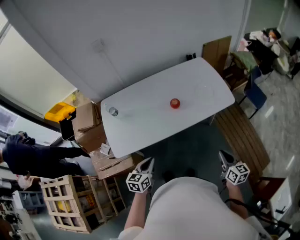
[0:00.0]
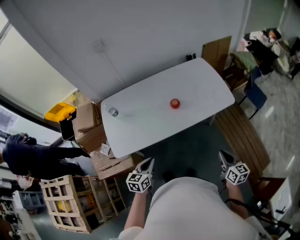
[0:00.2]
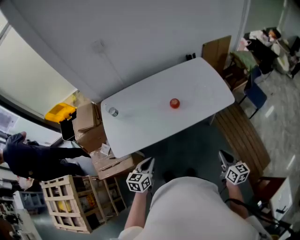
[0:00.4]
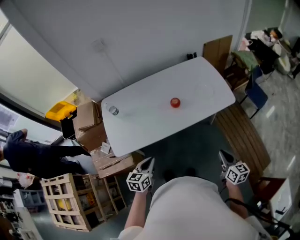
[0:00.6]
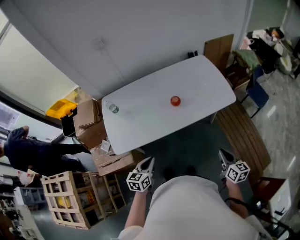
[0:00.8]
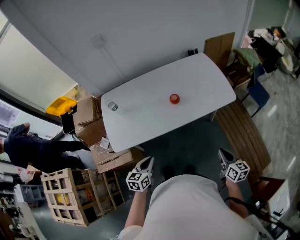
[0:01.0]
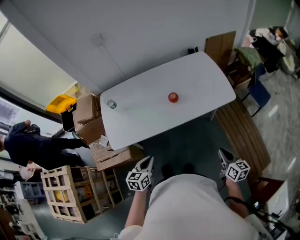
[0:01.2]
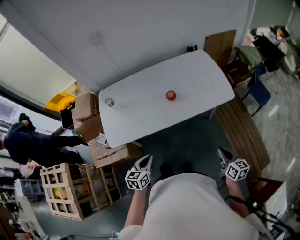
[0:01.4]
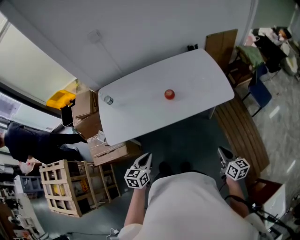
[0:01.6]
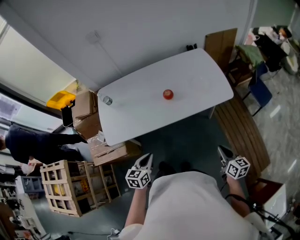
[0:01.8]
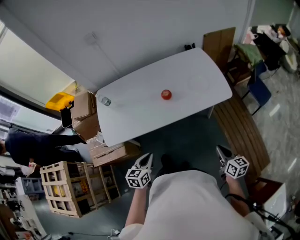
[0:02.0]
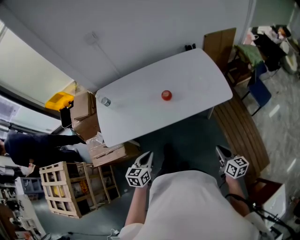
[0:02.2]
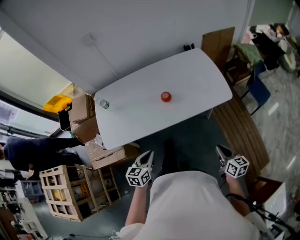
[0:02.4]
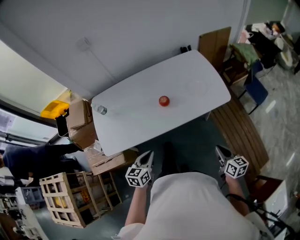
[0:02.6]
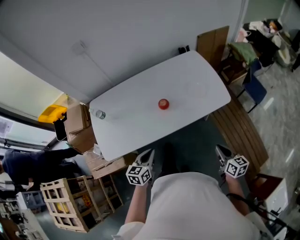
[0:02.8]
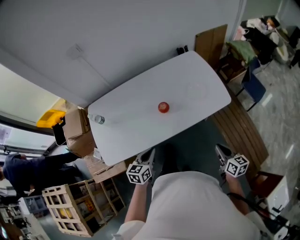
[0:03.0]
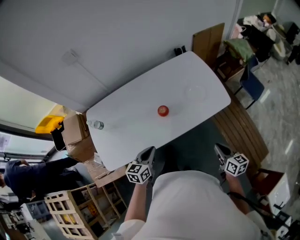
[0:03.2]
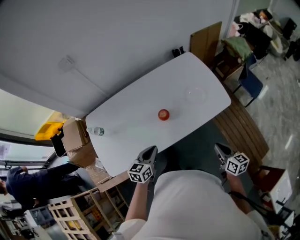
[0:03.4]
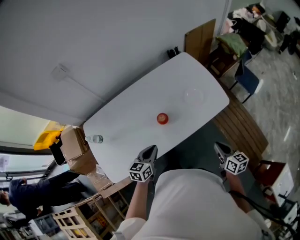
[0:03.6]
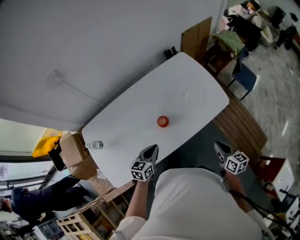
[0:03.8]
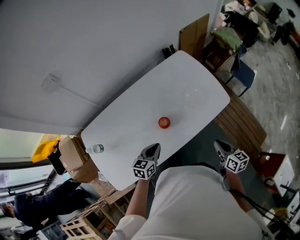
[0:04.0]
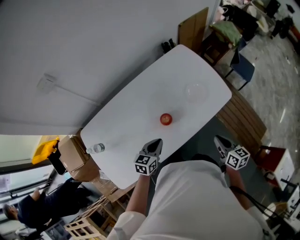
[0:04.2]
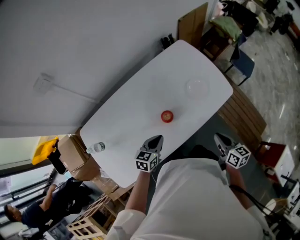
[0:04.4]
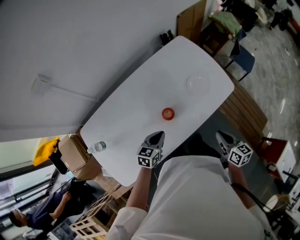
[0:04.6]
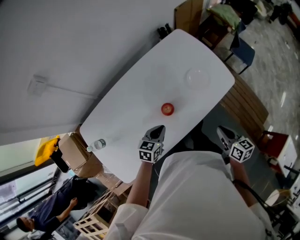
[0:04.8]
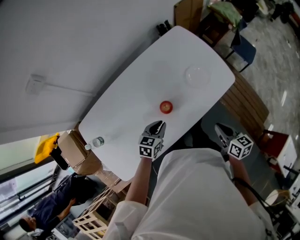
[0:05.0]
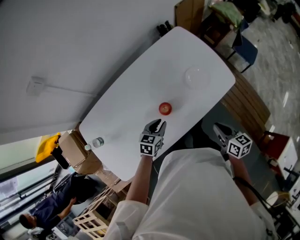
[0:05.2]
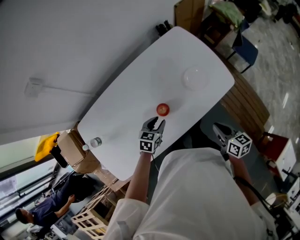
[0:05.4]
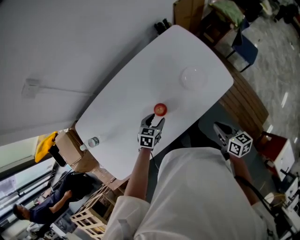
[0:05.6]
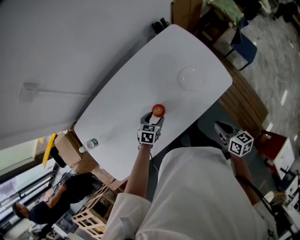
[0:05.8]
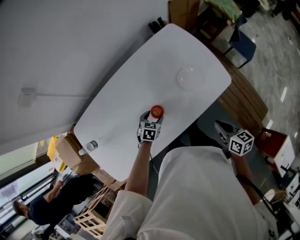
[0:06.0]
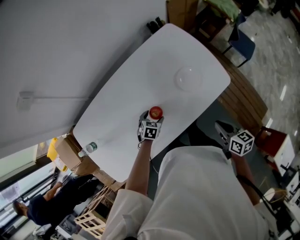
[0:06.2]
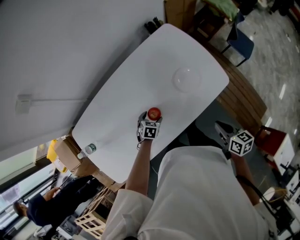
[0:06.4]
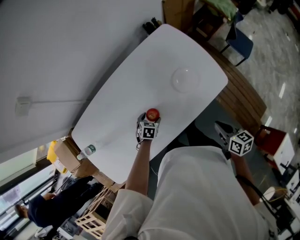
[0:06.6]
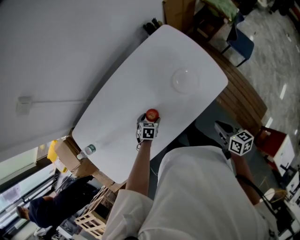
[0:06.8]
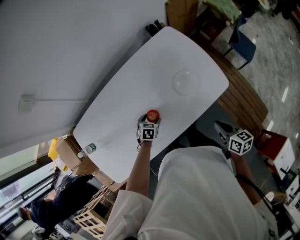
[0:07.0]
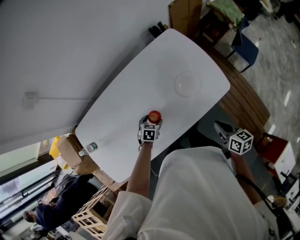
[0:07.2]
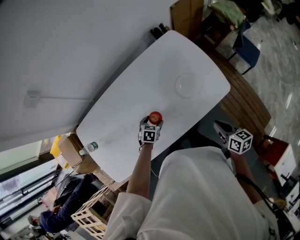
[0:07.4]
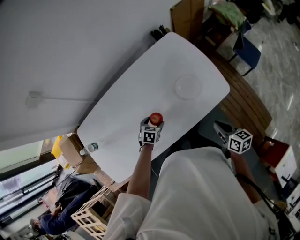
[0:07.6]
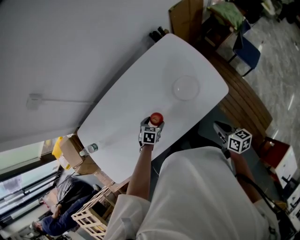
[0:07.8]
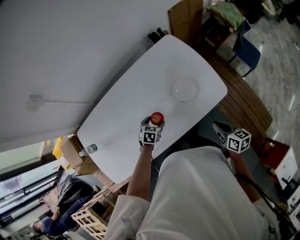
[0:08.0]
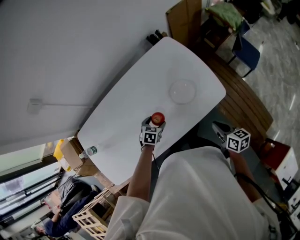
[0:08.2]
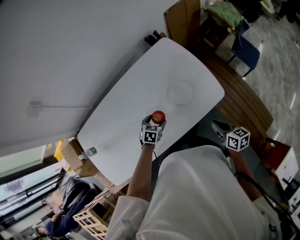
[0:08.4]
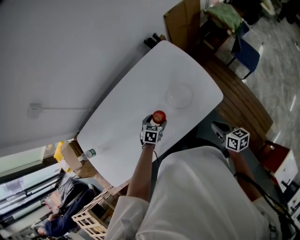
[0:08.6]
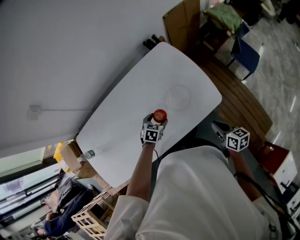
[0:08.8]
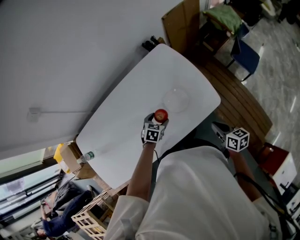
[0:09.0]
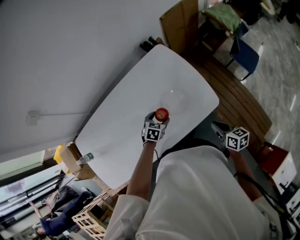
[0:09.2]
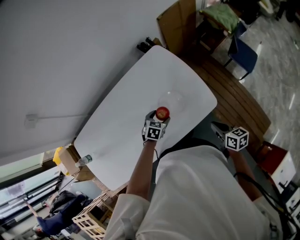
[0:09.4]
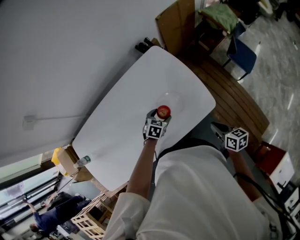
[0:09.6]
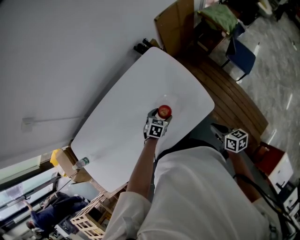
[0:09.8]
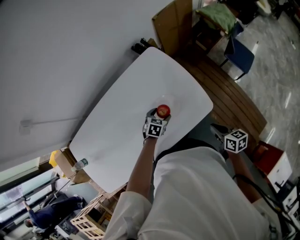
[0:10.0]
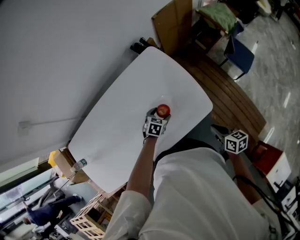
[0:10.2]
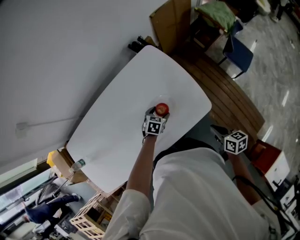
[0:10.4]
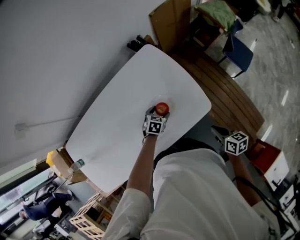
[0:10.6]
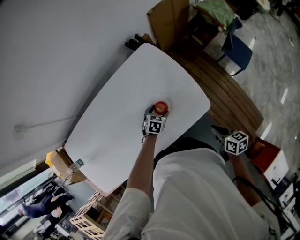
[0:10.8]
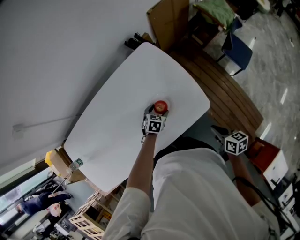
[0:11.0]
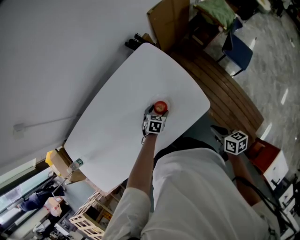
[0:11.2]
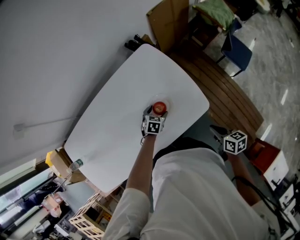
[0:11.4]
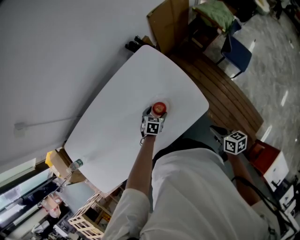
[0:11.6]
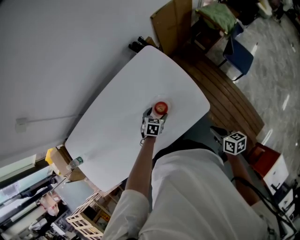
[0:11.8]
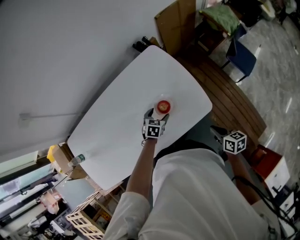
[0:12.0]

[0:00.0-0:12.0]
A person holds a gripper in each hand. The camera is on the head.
0:00.0 to 0:01.6: Both grippers travel together to the right, roughly 5 cm.
0:01.6 to 0:03.0: The left gripper goes approximately 15 cm forward. The right gripper travels forward by approximately 10 cm.
0:03.0 to 0:04.4: The right gripper travels to the left and forward by some 15 cm, while the left gripper is displaced forward by about 15 cm, and changes its angle by some 20 degrees.
0:04.4 to 0:06.0: The left gripper is displaced downward and forward by roughly 15 cm, changes its angle by some 30 degrees, and opens up; the right gripper shifts by some 5 cm.
0:06.0 to 0:07.6: The right gripper moves approximately 5 cm.
0:07.6 to 0:09.0: Both grippers move to the right and forward, roughly 10 cm.
0:09.0 to 0:10.4: The left gripper shifts about 10 cm to the right and forward. Meanwhile the right gripper moves approximately 5 cm.
0:10.4 to 0:12.0: The grippers move only a little.

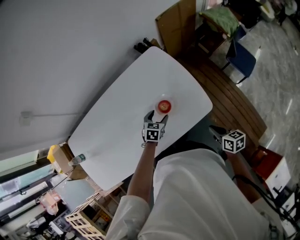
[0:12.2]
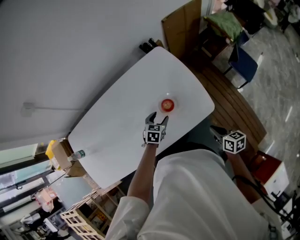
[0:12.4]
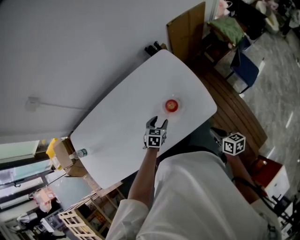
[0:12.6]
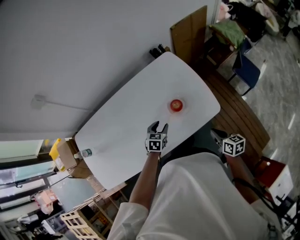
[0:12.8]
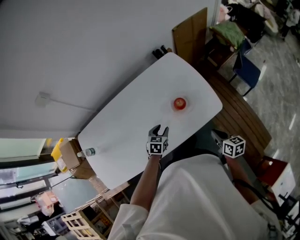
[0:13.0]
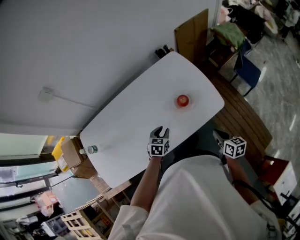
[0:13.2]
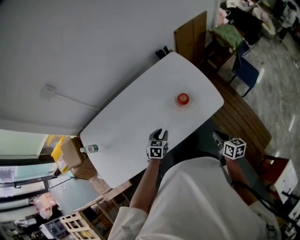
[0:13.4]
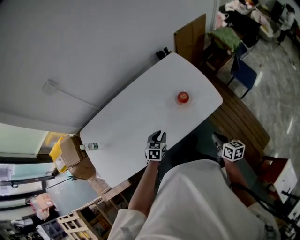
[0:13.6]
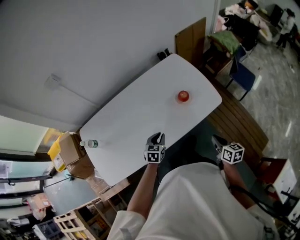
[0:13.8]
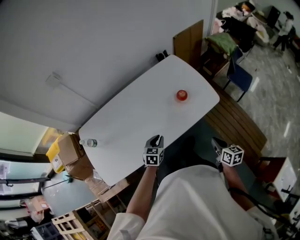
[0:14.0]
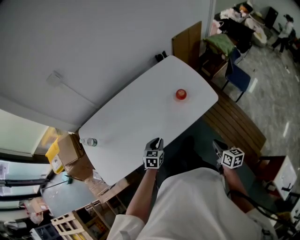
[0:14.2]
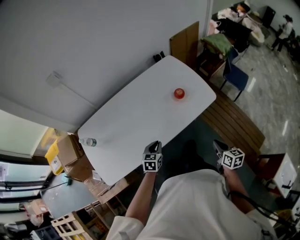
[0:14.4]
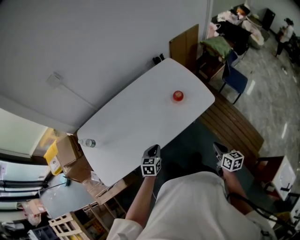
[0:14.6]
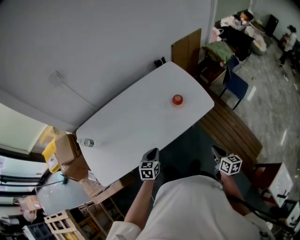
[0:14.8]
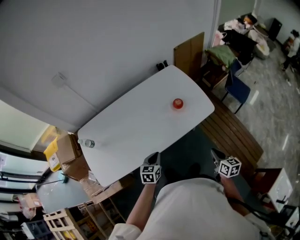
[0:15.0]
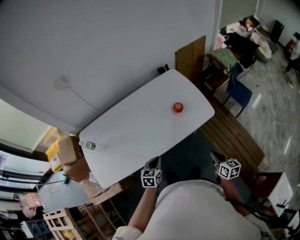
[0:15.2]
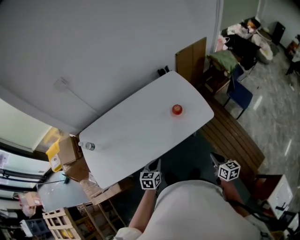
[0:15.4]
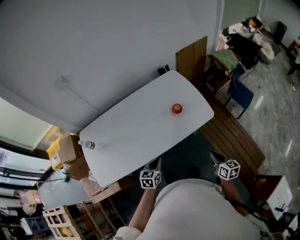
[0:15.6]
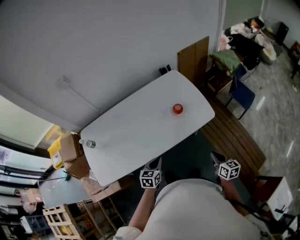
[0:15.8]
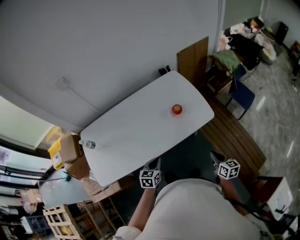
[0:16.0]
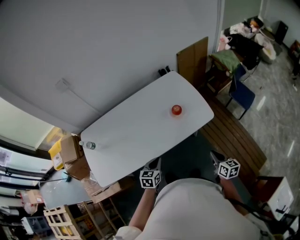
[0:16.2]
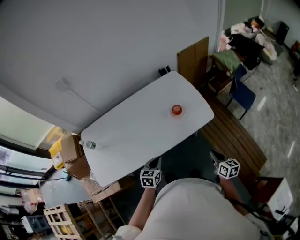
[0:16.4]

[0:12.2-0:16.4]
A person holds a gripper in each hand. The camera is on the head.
0:12.2 to 0:13.6: The two grippers go approximately 20 cm backward and to the left. The left gripper closes its fingers.
0:13.6 to 0:15.0: The grippers both shift backward by approximately 10 cm.
0:15.0 to 0:16.4: There are only small adjustments of the grippers.

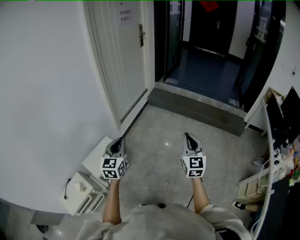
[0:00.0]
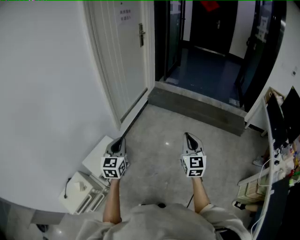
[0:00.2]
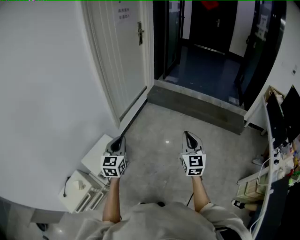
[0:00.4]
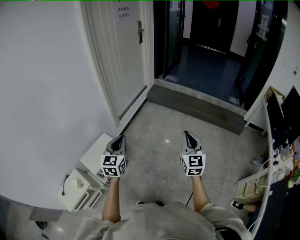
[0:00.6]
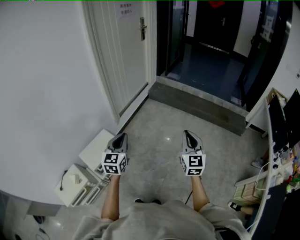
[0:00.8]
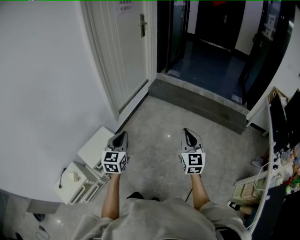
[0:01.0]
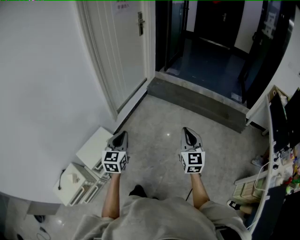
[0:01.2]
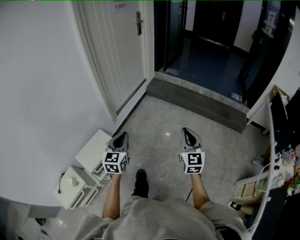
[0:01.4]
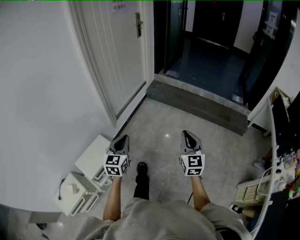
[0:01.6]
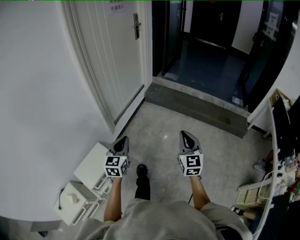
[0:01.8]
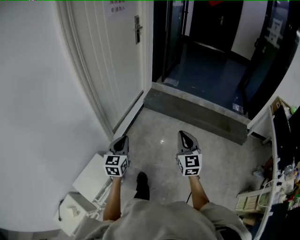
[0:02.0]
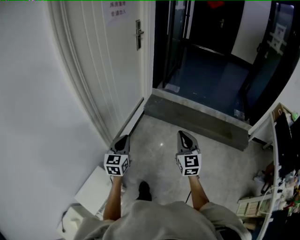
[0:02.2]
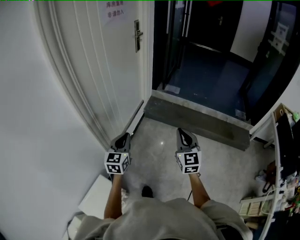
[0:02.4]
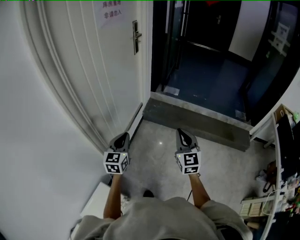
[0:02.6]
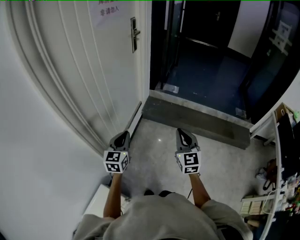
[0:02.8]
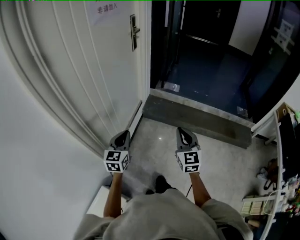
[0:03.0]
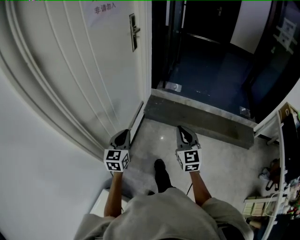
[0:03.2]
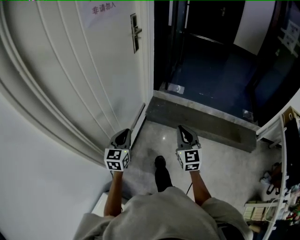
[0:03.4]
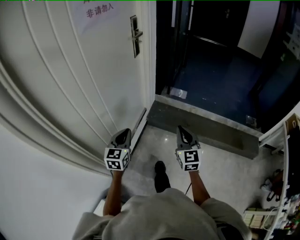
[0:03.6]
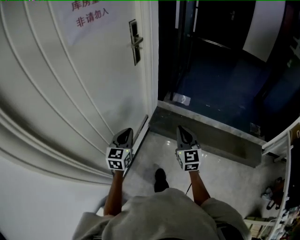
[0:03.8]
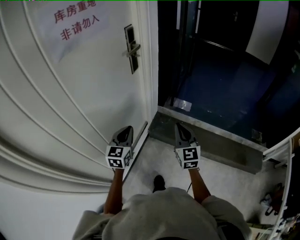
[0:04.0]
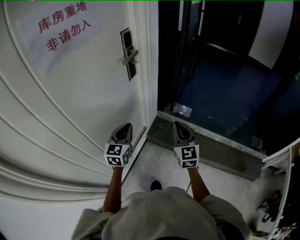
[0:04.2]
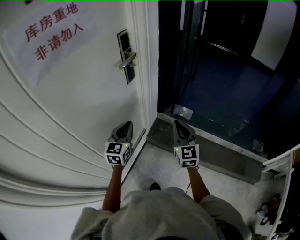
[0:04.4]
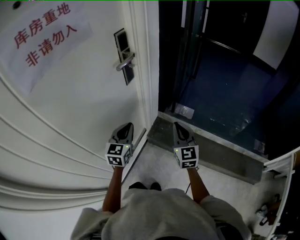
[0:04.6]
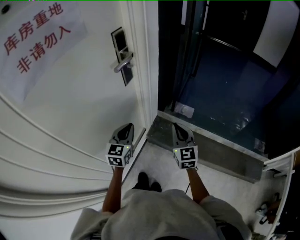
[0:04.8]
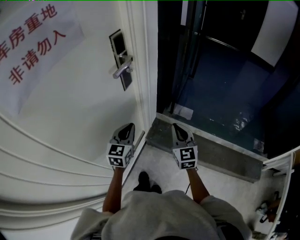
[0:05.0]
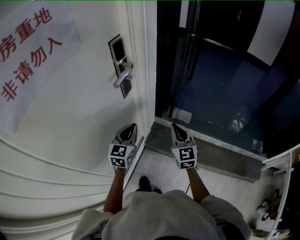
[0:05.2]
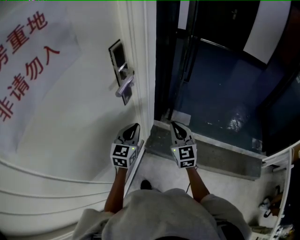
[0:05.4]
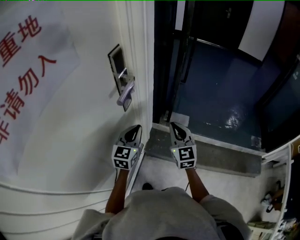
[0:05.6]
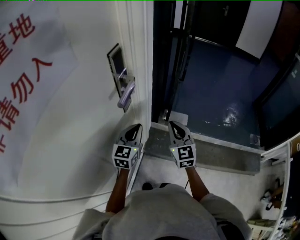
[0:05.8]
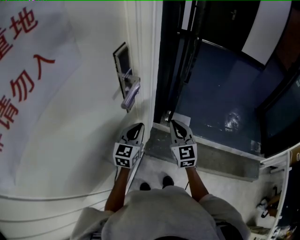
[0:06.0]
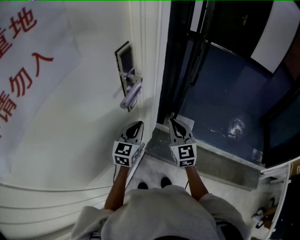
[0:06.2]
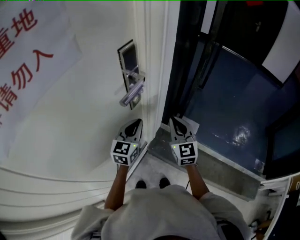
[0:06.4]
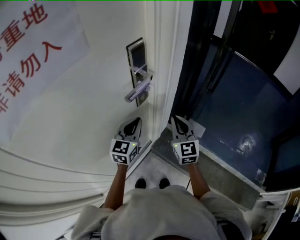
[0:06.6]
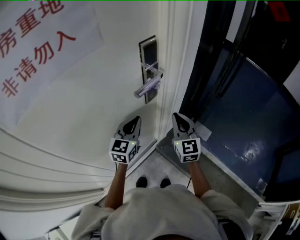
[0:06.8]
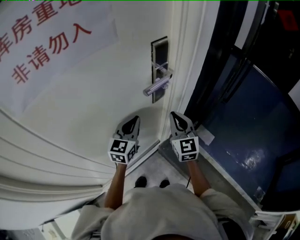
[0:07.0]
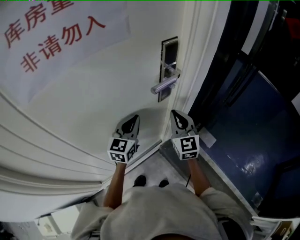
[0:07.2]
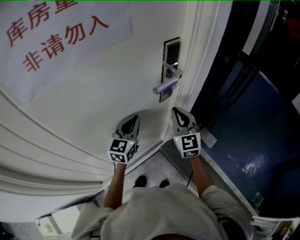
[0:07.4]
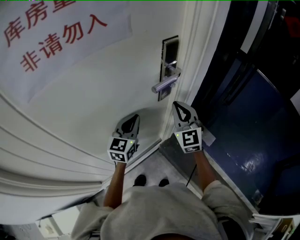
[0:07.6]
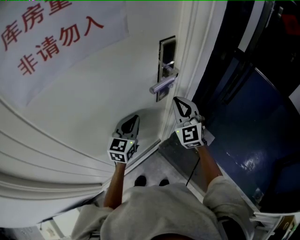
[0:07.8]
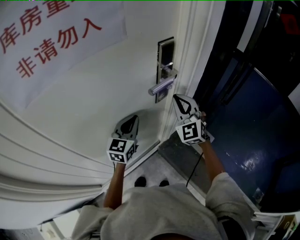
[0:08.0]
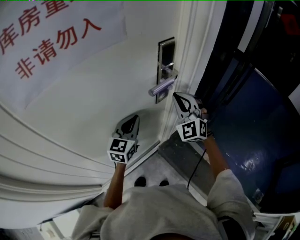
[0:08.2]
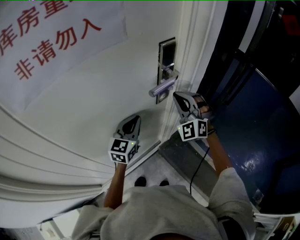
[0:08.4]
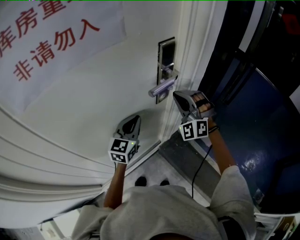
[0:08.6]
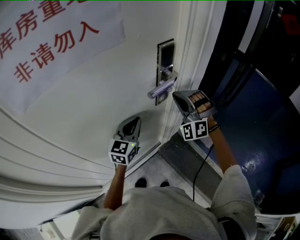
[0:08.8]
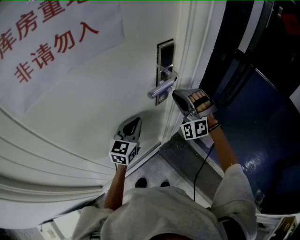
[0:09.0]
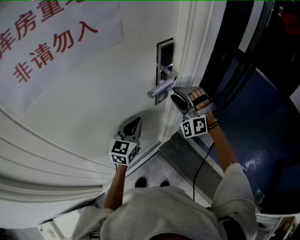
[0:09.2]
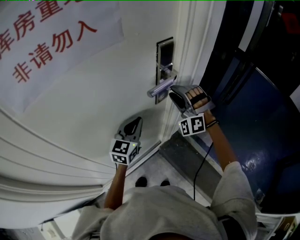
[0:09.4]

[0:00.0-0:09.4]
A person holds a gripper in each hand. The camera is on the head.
0:00.0 to 0:01.6: The left gripper heads forward, to the right and downward, covering about 15 cm; the right gripper moves forward, approximately 10 cm.
0:01.6 to 0:03.2: The pair of grippers is taken forward, approximately 50 cm.
0:03.2 to 0:04.8: The two grippers travel together, forward, roughly 50 cm.
0:04.8 to 0:06.2: The right gripper shifts roughly 20 cm forward and to the left; the left gripper shifts some 15 cm forward.
0:06.2 to 0:07.8: The right gripper changes place by about 15 cm, and swivels some 40 degrees. The left gripper ends up some 10 cm from where it was, and turns by roughly 30 degrees.
0:07.8 to 0:09.4: The right gripper shifts by approximately 5 cm, rotates around the line of its fingers by approximately 50 degrees, counterclockwise from behind, and opens up.
